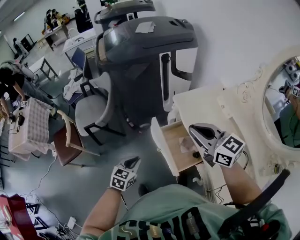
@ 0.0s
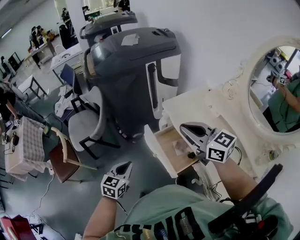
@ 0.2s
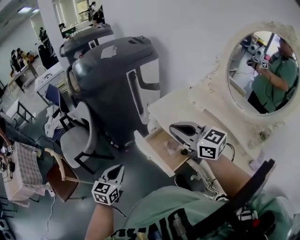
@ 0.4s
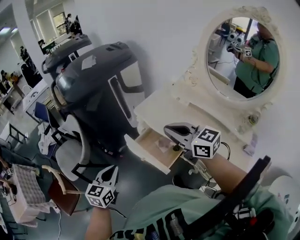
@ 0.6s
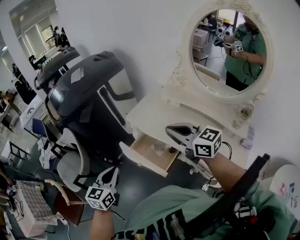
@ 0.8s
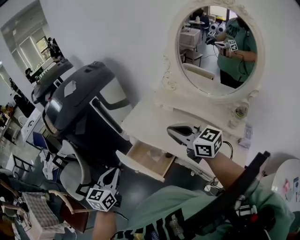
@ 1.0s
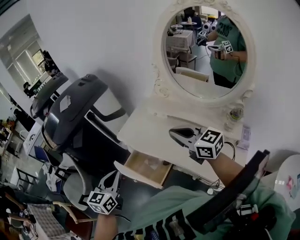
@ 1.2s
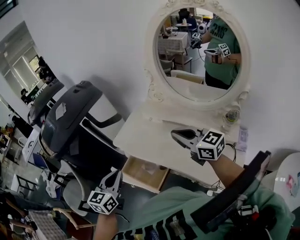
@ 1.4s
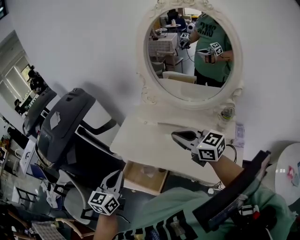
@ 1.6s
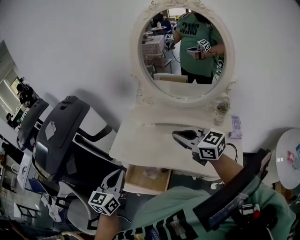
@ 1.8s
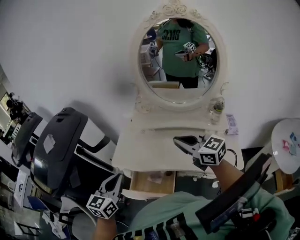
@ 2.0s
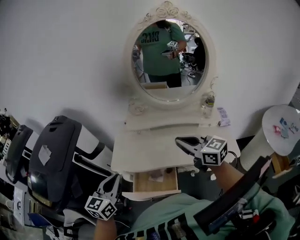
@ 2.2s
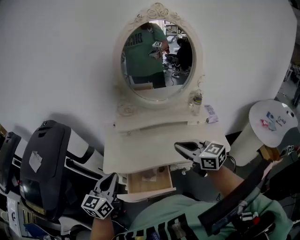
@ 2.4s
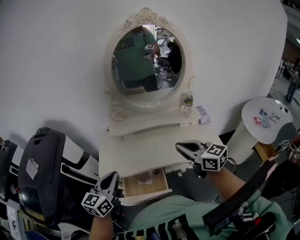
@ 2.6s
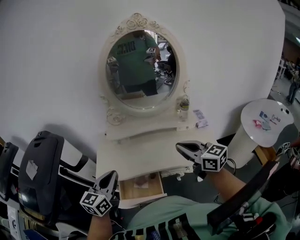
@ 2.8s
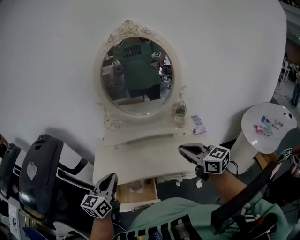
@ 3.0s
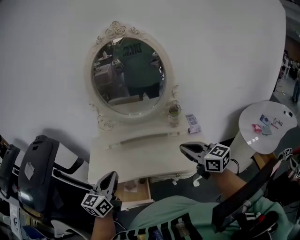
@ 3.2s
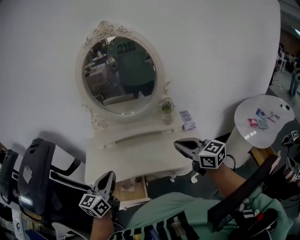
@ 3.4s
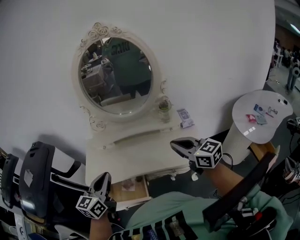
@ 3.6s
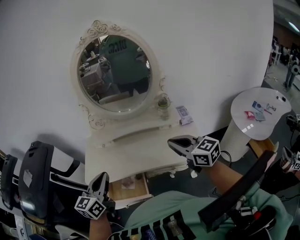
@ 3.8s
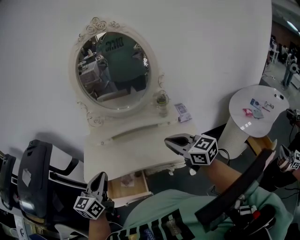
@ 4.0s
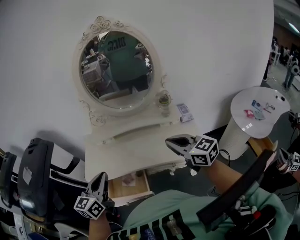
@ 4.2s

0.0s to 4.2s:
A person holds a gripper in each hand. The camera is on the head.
0.0s to 1.4s: The right gripper changes place by roughly 25 cm, and turns by approximately 30 degrees. Meanwhile the left gripper goes approximately 25 cm upward, and changes its angle by about 30 degrees.
1.4s to 2.8s: The left gripper ends up about 10 cm from where it was, and changes its angle by some 40 degrees. Meanwhile the right gripper ends up about 10 cm from where it was, and rotates about 40 degrees.
2.8s to 4.2s: Both grippers move to the right, some 10 cm.

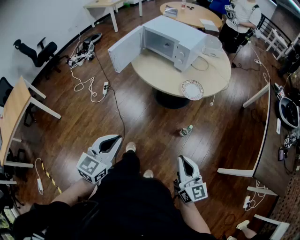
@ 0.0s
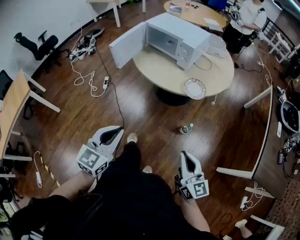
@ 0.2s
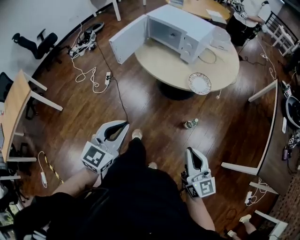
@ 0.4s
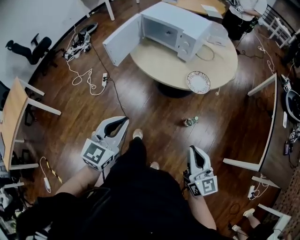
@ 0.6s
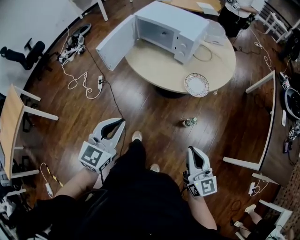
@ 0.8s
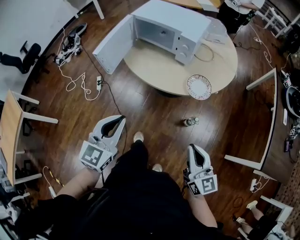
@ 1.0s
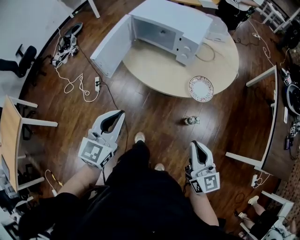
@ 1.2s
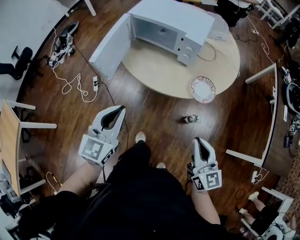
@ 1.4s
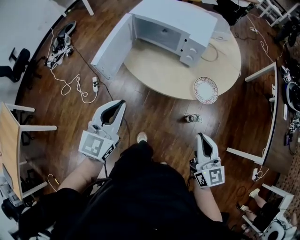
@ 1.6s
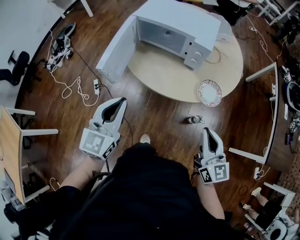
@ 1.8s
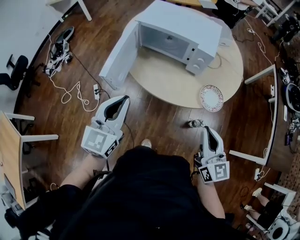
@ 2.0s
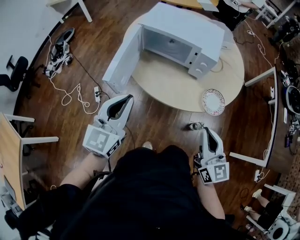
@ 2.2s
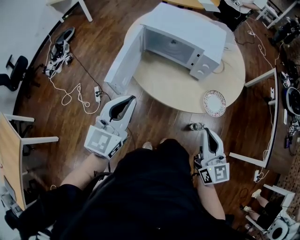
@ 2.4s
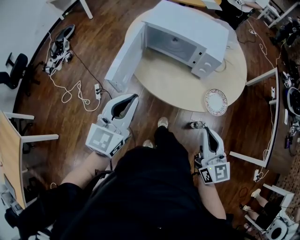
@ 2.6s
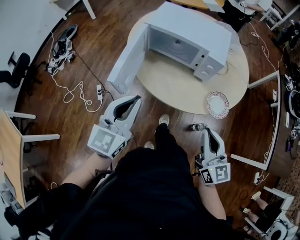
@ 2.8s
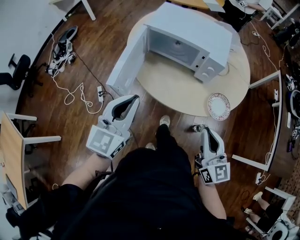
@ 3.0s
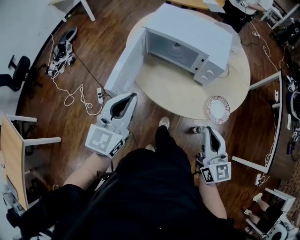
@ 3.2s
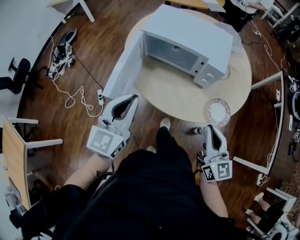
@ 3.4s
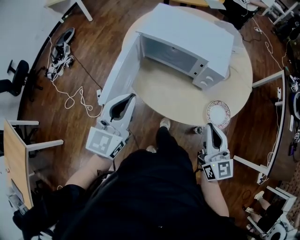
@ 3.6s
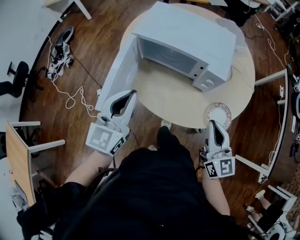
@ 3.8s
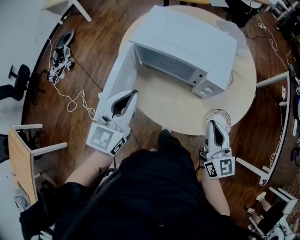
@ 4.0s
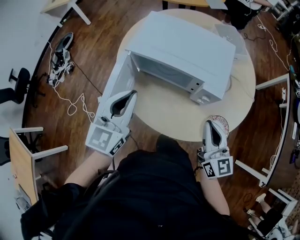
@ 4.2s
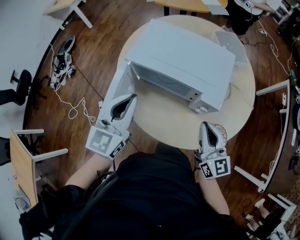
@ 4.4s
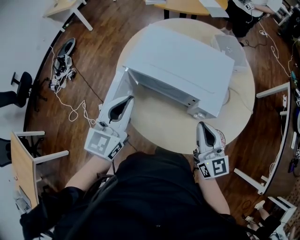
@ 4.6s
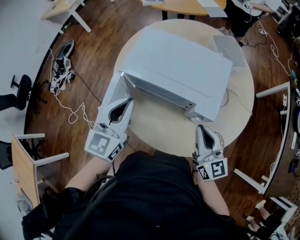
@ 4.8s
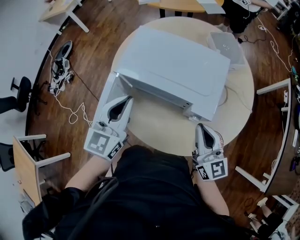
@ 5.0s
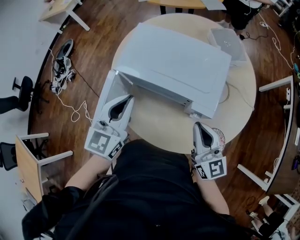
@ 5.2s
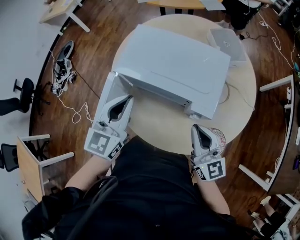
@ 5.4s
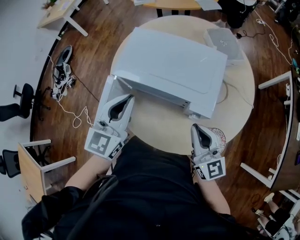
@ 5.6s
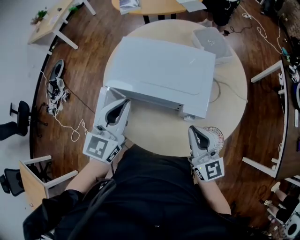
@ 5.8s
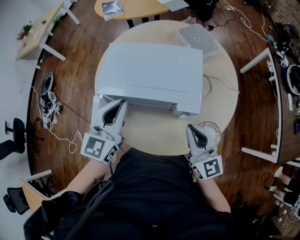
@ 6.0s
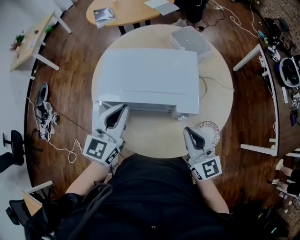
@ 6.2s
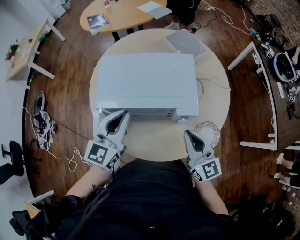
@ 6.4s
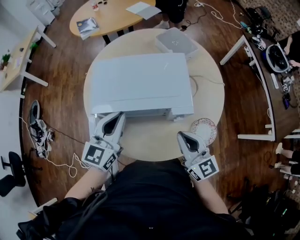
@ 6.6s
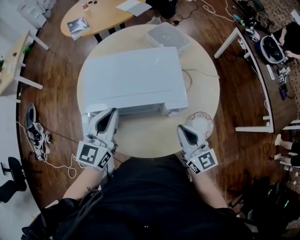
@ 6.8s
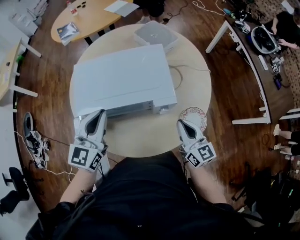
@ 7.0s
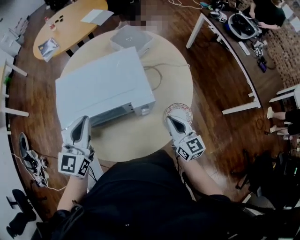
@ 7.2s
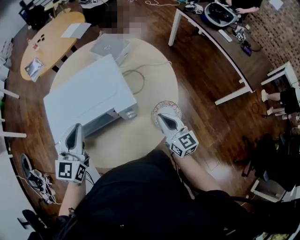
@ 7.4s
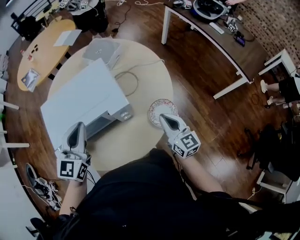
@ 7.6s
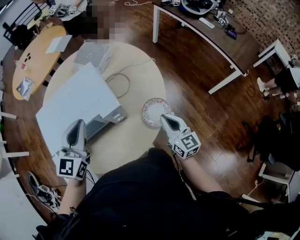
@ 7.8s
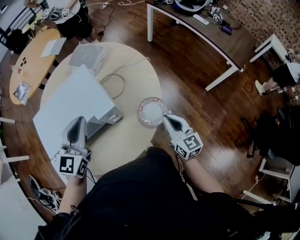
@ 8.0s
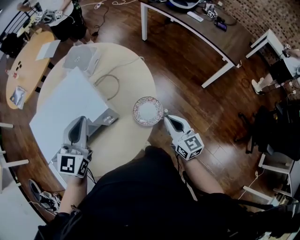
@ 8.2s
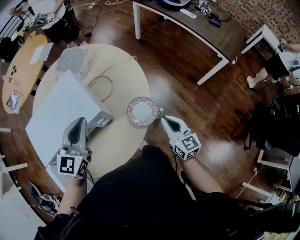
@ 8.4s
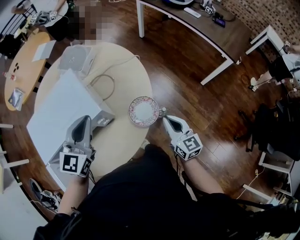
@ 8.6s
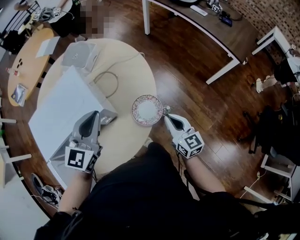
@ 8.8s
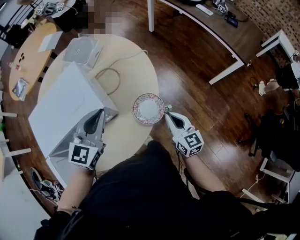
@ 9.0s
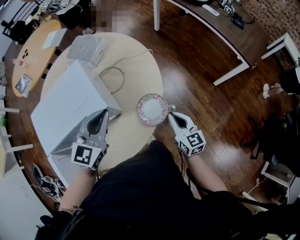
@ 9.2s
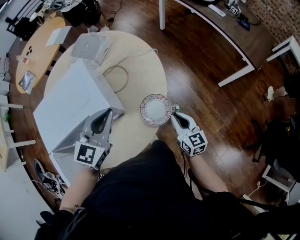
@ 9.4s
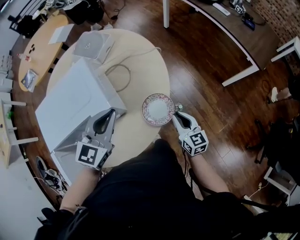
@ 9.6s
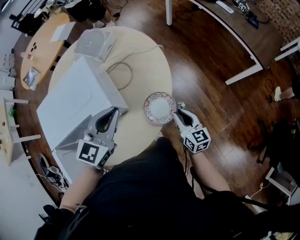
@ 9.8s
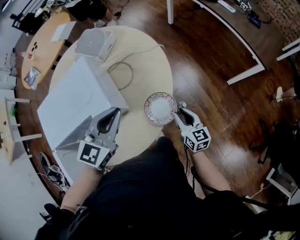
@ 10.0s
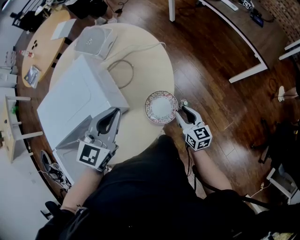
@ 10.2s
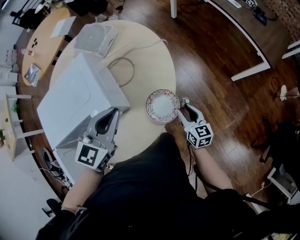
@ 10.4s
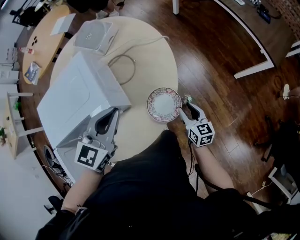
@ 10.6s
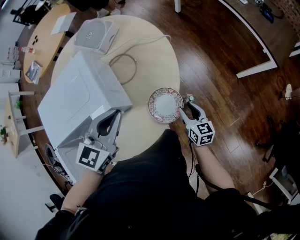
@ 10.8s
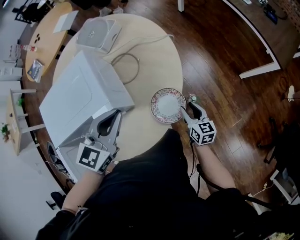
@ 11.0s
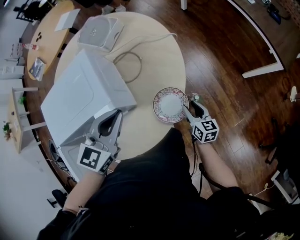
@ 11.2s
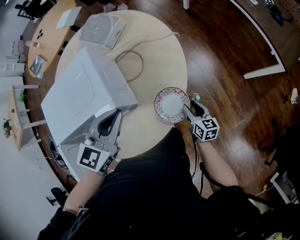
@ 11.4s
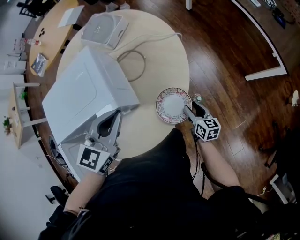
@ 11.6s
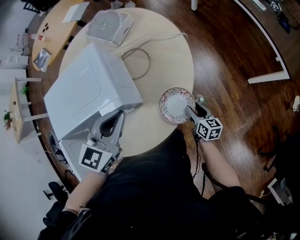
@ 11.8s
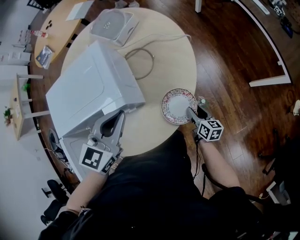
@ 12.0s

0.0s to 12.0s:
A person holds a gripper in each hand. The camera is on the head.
0.0s to 1.6s: Both grippers travel together forward, about 25 cm.
1.6s to 3.0s: The two grippers go approximately 10 cm forward and to the left.
3.0s to 4.4s: Both grippers move forward, about 20 cm.
4.4s to 6.0s: The left gripper heads forward, covering about 10 cm.
6.0s to 7.6s: The right gripper shifts by some 15 cm, and turns by roughly 30 degrees. The left gripper changes place by about 5 cm, and changes its angle by some 20 degrees.
7.6s to 9.0s: The right gripper is displaced to the right and downward by some 10 cm, while the left gripper shifts some 15 cm to the right.
9.0s to 10.4s: The right gripper is displaced downward by roughly 10 cm, and opens its fingers.
10.4s to 12.0s: The right gripper shifts some 10 cm downward, and changes its angle by about 20 degrees.

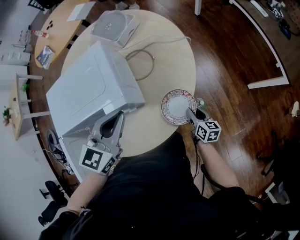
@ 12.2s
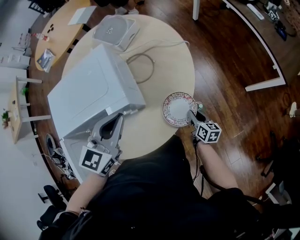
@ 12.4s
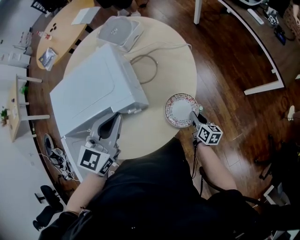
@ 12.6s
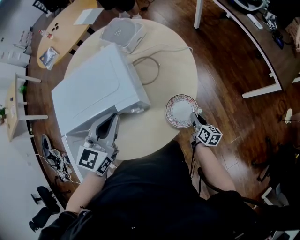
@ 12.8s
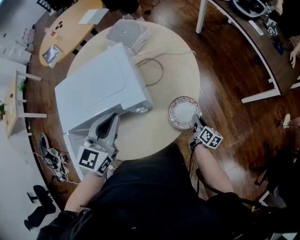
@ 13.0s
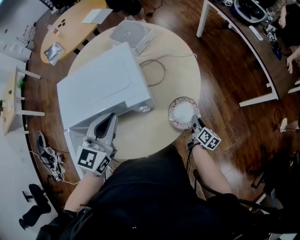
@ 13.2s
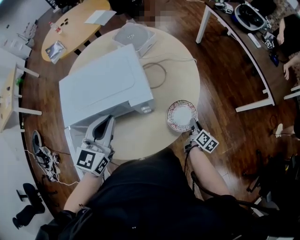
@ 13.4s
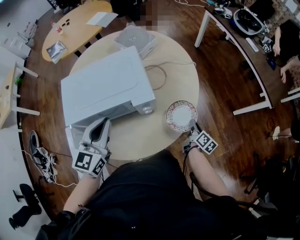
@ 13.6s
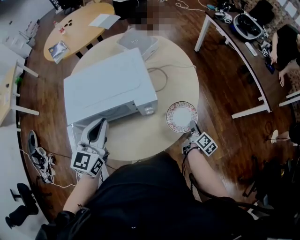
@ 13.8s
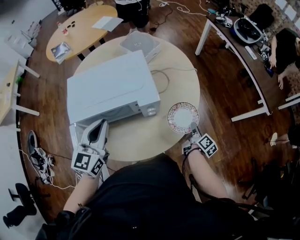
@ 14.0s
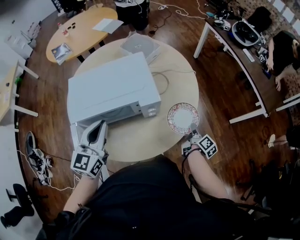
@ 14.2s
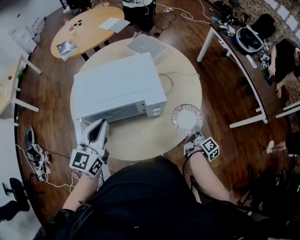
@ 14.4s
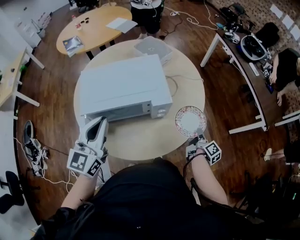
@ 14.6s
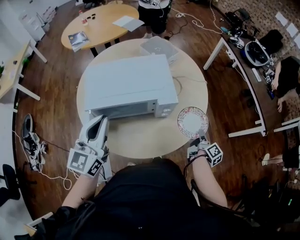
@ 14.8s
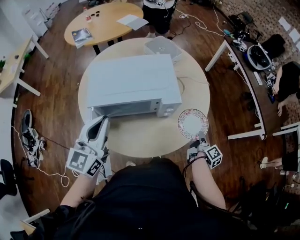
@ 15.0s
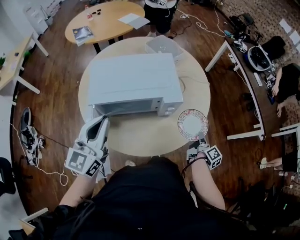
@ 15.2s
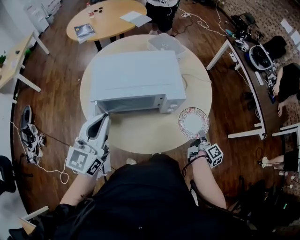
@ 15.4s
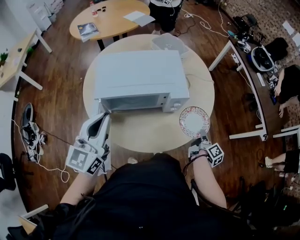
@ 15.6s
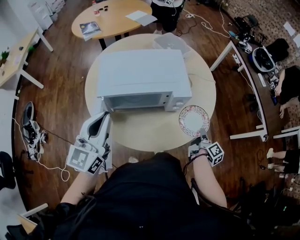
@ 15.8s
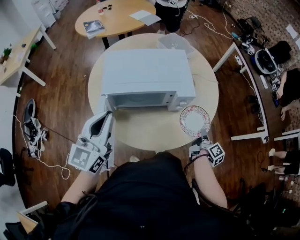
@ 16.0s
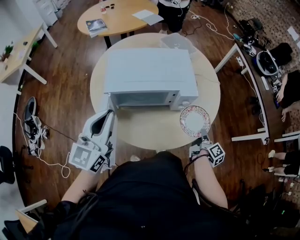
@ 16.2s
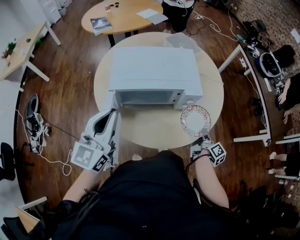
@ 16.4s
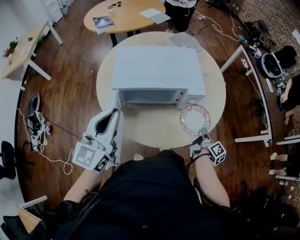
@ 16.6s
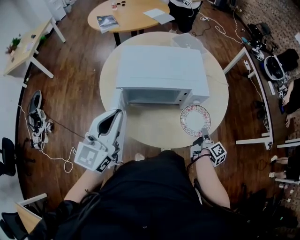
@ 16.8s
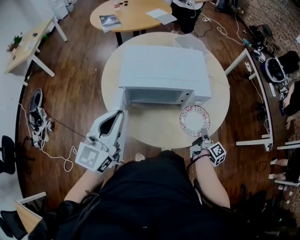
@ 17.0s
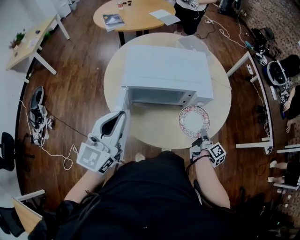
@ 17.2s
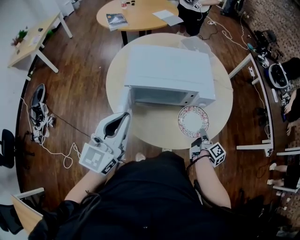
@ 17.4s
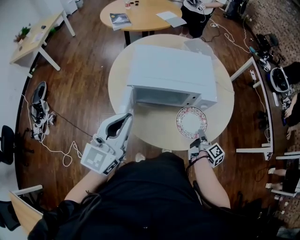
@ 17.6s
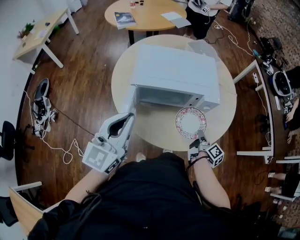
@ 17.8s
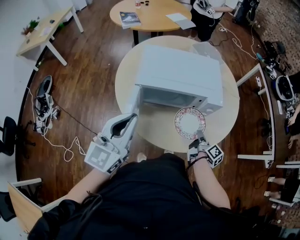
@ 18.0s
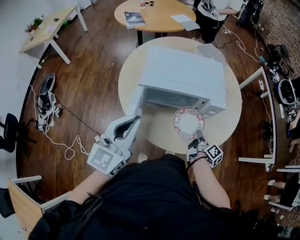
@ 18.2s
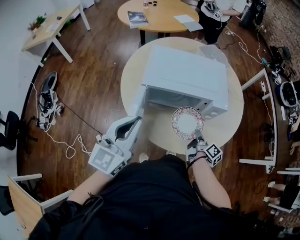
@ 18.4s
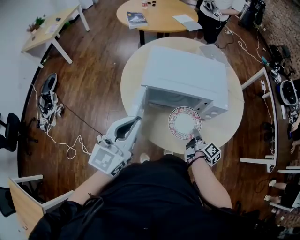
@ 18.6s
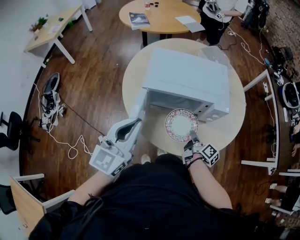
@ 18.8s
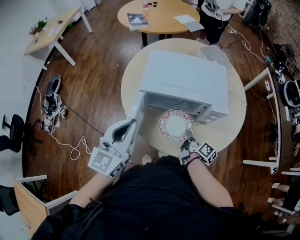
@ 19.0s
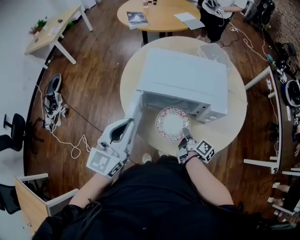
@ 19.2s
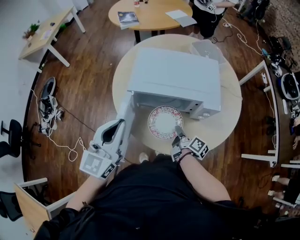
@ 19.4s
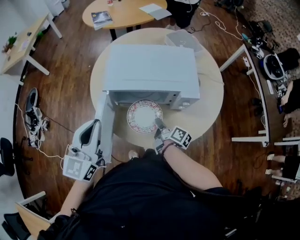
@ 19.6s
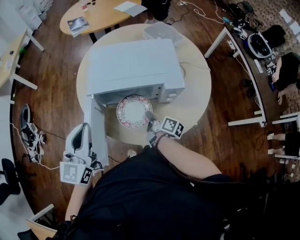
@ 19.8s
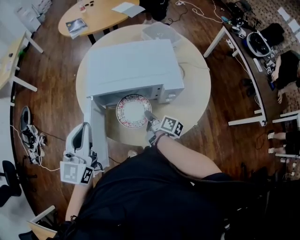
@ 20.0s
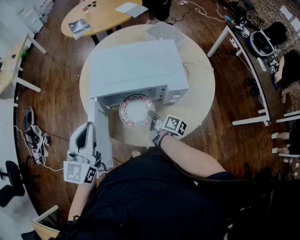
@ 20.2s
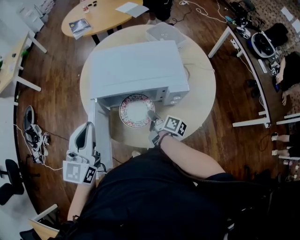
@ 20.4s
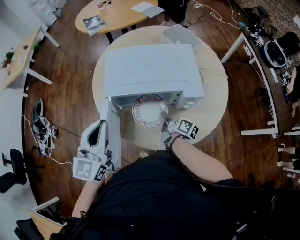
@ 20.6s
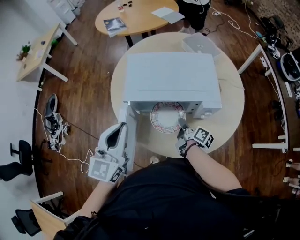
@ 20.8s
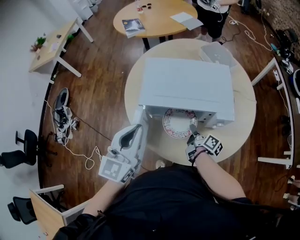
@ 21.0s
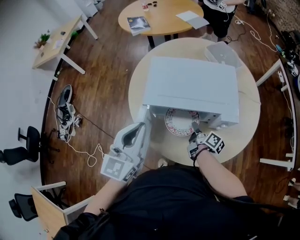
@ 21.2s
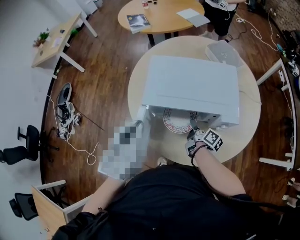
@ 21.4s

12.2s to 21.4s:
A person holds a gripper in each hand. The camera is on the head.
12.2s to 13.8s: The left gripper is displaced to the left and backward by roughly 15 cm. Meanwhile the right gripper moves upward, some 10 cm, turns by some 30 degrees, and closes its fingers.
13.8s to 15.2s: The right gripper moves upward, some 5 cm. The left gripper shifts roughly 10 cm backward, to the left and upward.
15.2s to 16.8s: The right gripper moves to the left, roughly 10 cm, while the left gripper shifts roughly 5 cm backward.
16.8s to 18.4s: The right gripper shifts some 10 cm to the left.
18.4s to 19.8s: The right gripper is displaced to the left by approximately 10 cm.
19.8s to 21.4s: The left gripper moves about 5 cm. Meanwhile the right gripper goes roughly 5 cm forward.
